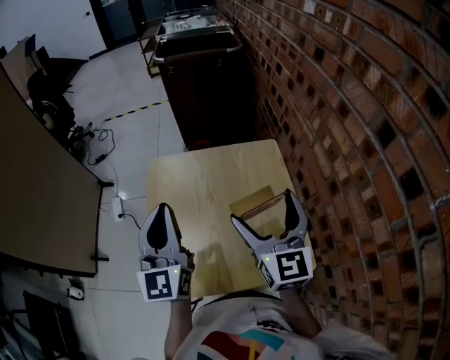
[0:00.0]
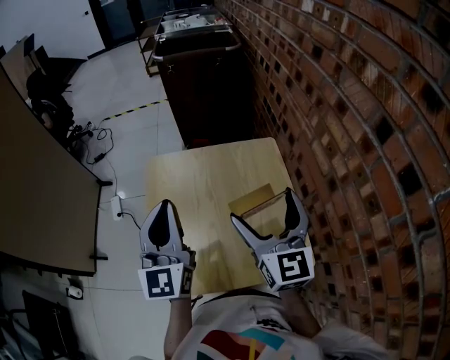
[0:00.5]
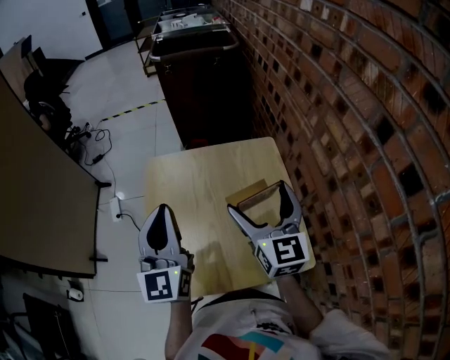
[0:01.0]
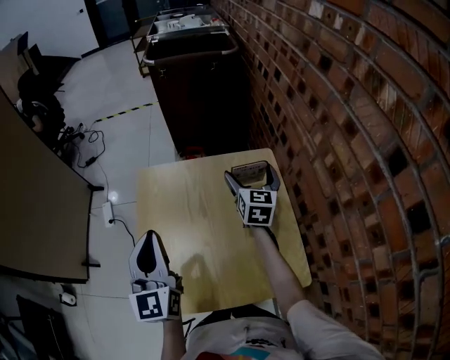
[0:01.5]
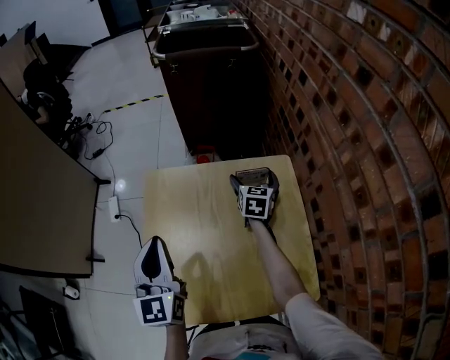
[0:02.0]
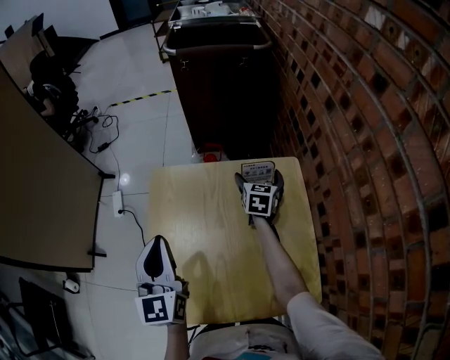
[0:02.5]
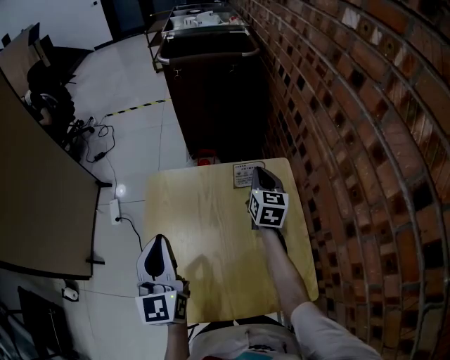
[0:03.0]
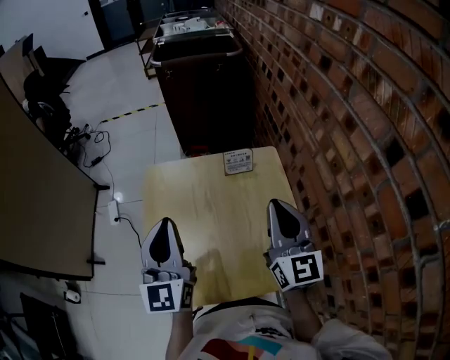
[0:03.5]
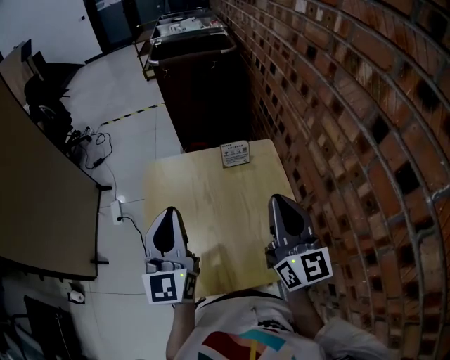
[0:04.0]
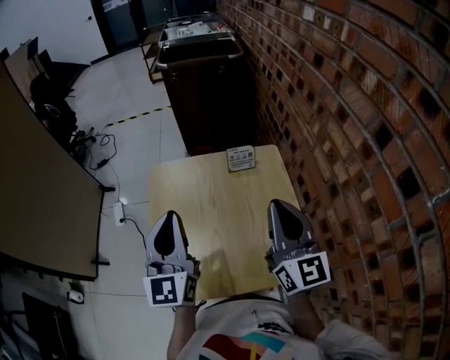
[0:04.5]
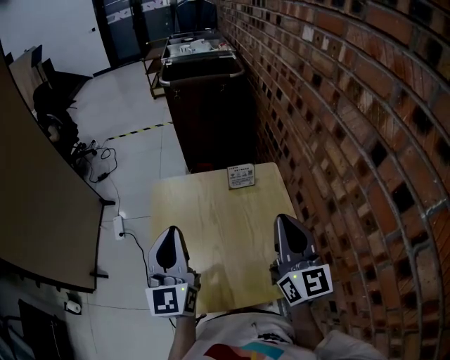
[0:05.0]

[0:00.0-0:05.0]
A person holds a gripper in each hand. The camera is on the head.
0.0 to 2.5 s: The left gripper shifts approximately 10 cm downward, forward and to the left; the right gripper heads forward and downward, covering some 40 cm, and rotates roughly 30 degrees.
2.5 to 5.0 s: The right gripper is displaced backward and upward by approximately 40 cm, tips its fingers upward by approximately 40 degrees, and closes up. The left gripper is displaced upward and backward by about 10 cm.

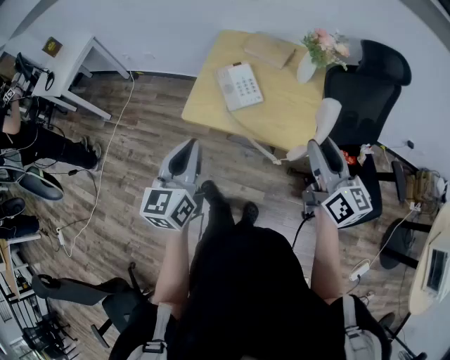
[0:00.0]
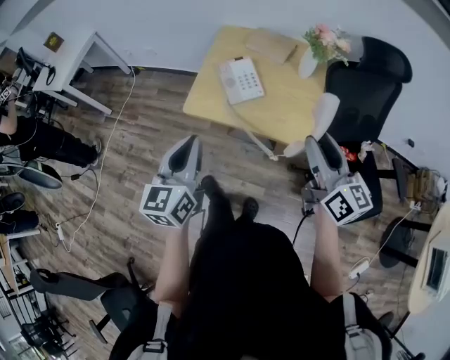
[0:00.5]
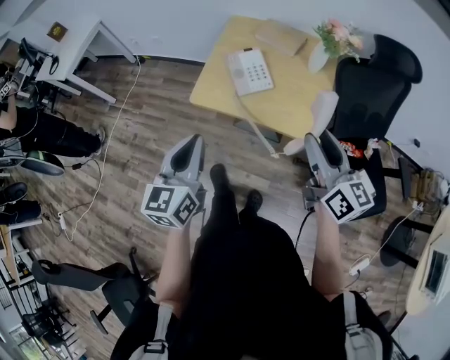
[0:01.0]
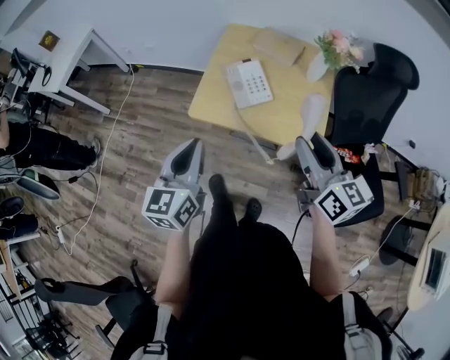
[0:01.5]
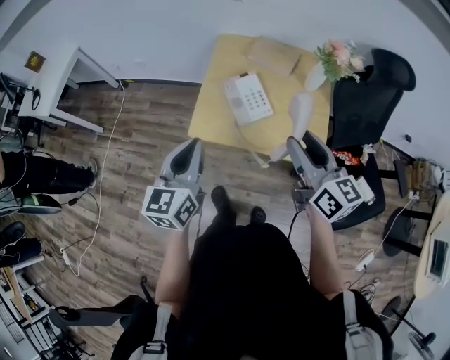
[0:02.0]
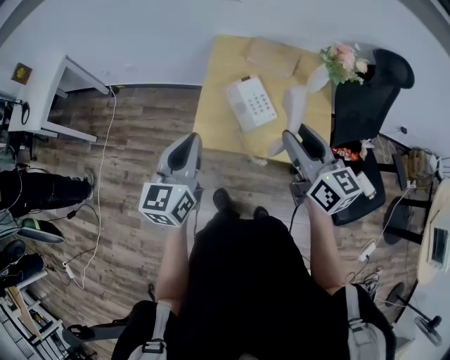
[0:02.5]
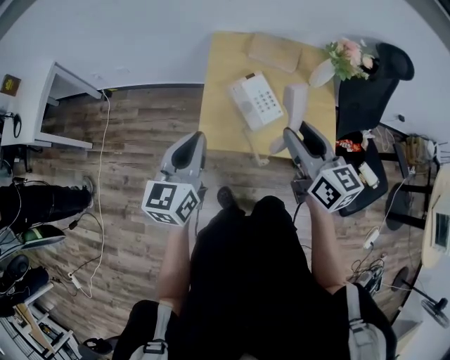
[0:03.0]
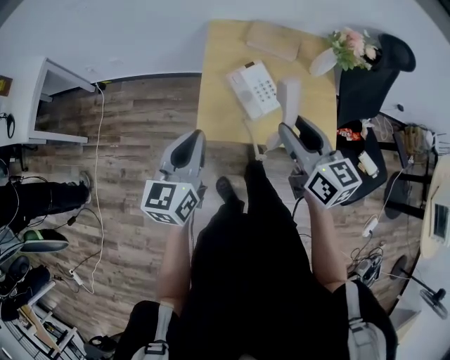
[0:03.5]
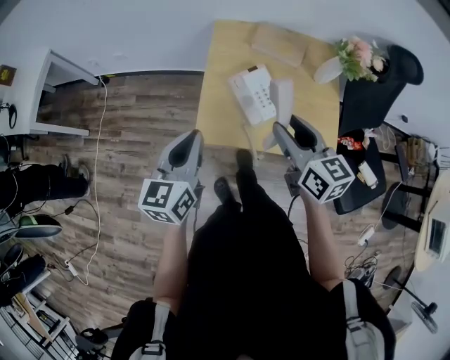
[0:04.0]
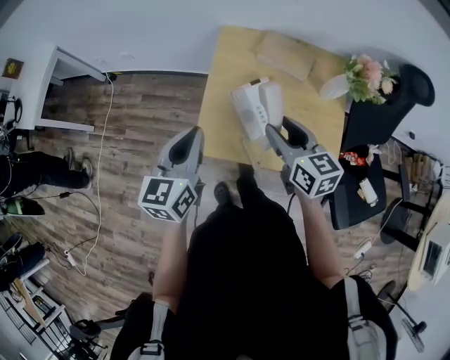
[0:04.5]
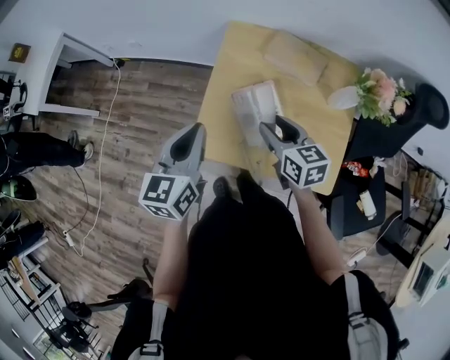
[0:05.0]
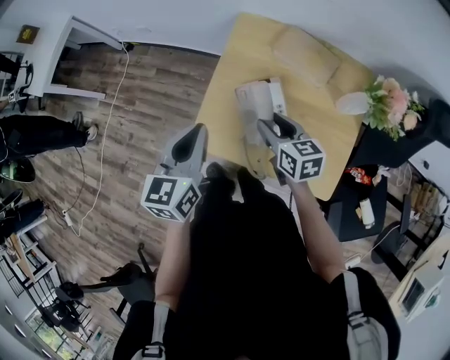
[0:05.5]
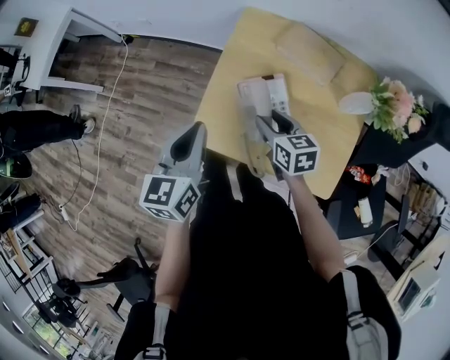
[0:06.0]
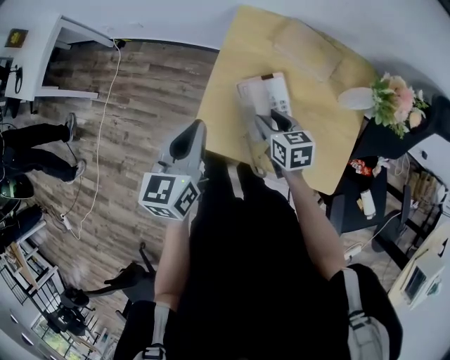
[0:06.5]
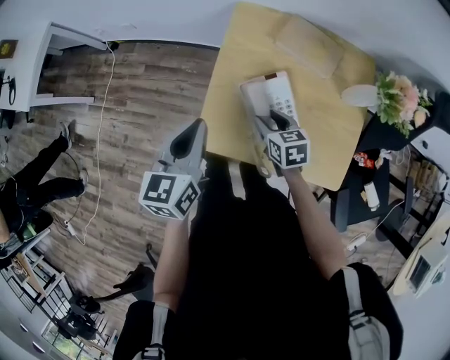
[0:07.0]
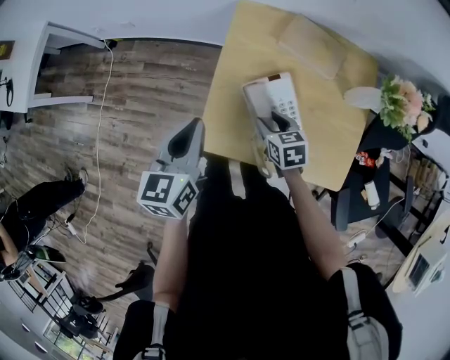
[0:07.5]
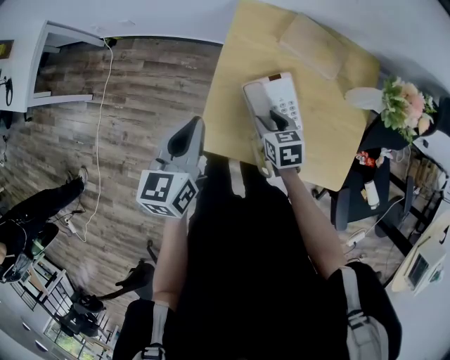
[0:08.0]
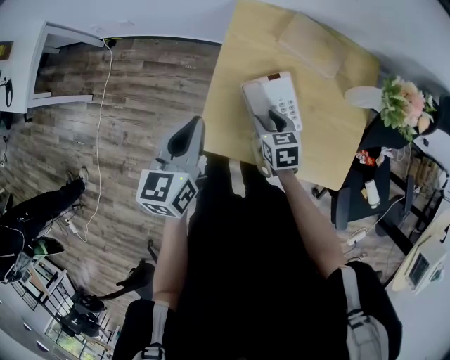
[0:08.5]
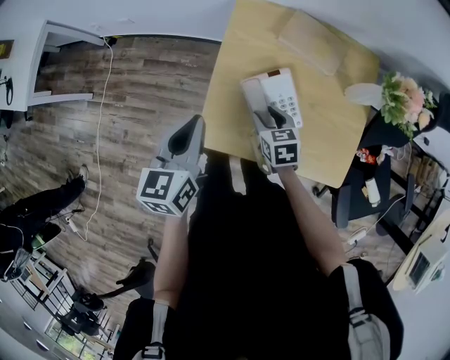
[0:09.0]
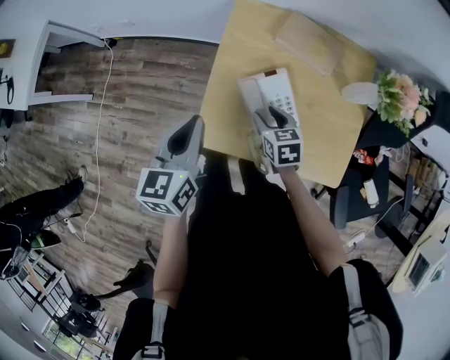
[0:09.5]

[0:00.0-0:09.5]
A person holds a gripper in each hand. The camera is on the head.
0.0 to 2.0 s: The right gripper travels to the left and forward by some 15 cm. The left gripper moves forward and to the left, approximately 15 cm.
2.0 to 4.0 s: Both grippers move forward, to the left and downward, about 15 cm.
4.0 to 5.5 s: The left gripper moves forward and to the right, some 10 cm; the right gripper goes about 20 cm downward and forward, and swivels some 20 degrees.
5.5 to 7.5 s: The right gripper is displaced downward by approximately 10 cm. Meanwhile the left gripper heads forward, covering roughly 5 cm.
7.5 to 9.5 s: The grippers move only a little.

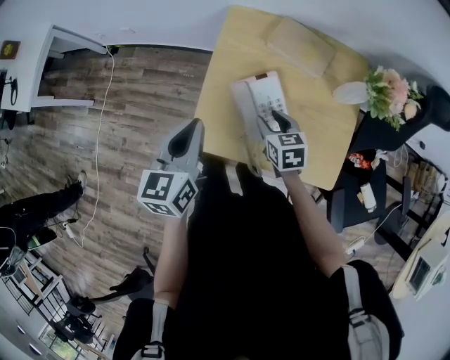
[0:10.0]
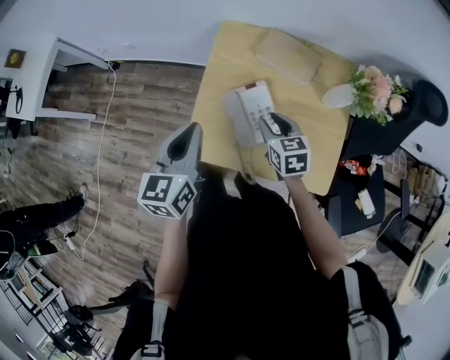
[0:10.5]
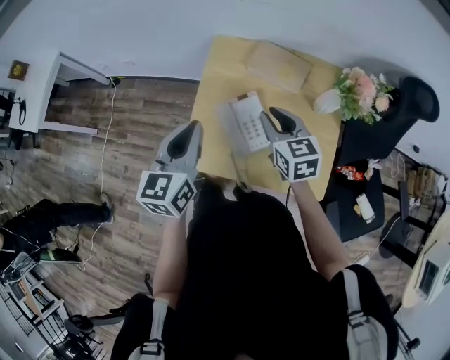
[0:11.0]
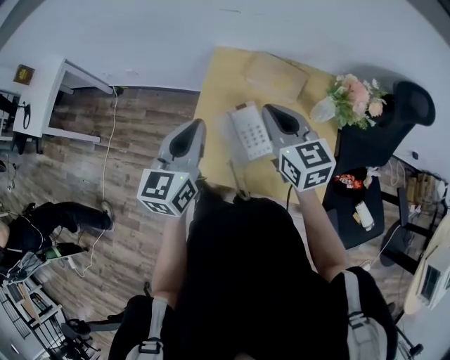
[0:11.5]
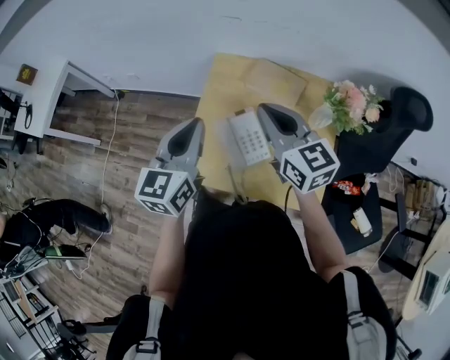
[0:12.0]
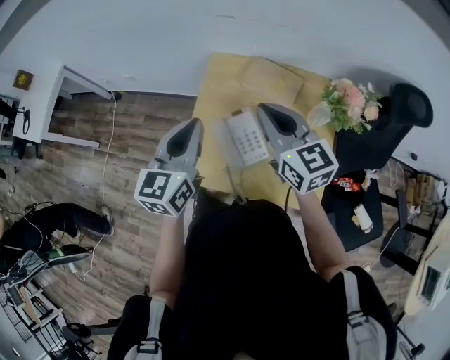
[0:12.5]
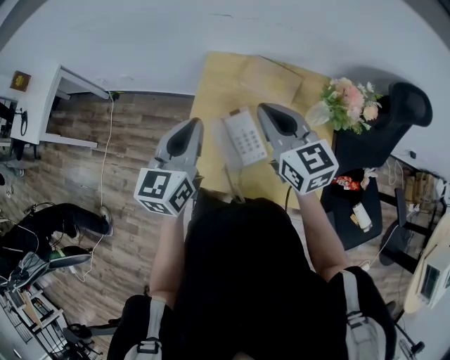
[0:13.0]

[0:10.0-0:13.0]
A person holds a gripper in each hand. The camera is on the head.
10.0 to 11.5 s: The left gripper heads upward and to the right, covering some 10 cm. The right gripper is displaced upward by about 25 cm, changes its angle by approximately 30 degrees, and closes its fingers.
11.5 to 13.0 s: The grippers make only small movements.

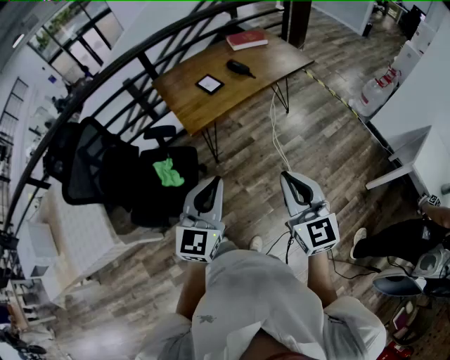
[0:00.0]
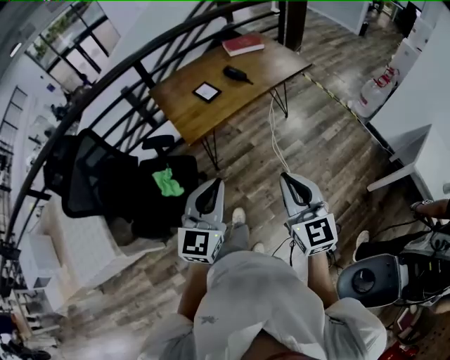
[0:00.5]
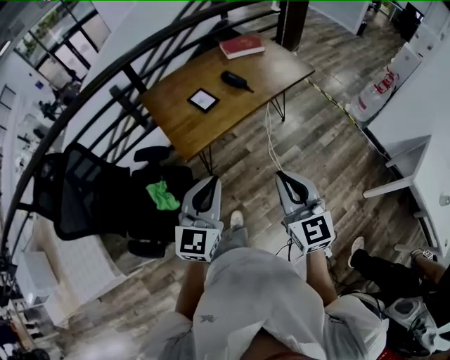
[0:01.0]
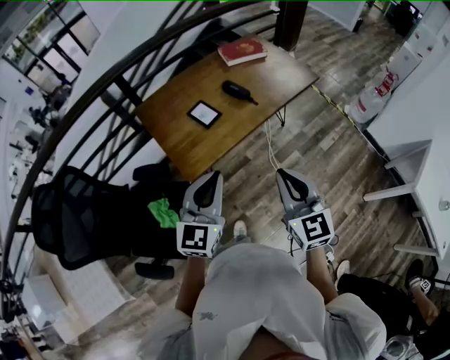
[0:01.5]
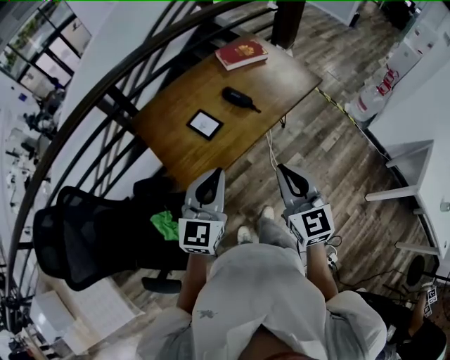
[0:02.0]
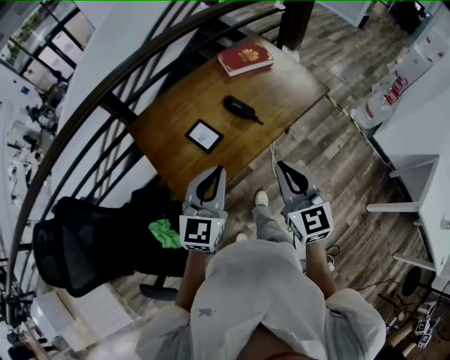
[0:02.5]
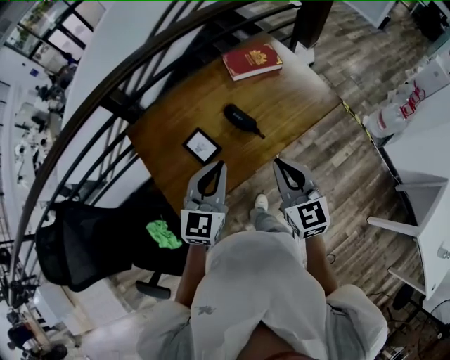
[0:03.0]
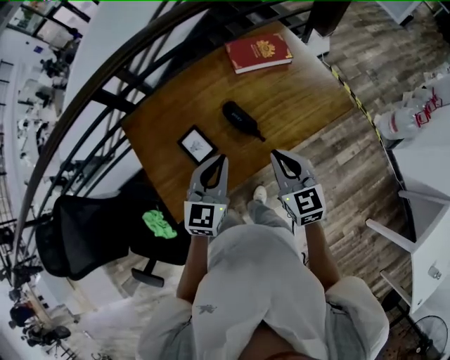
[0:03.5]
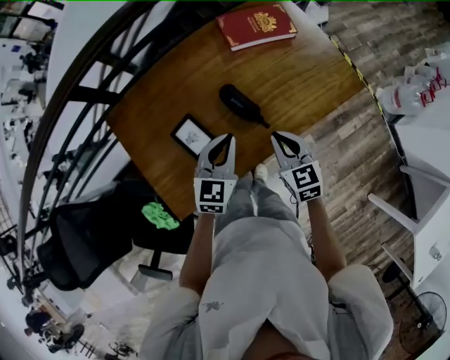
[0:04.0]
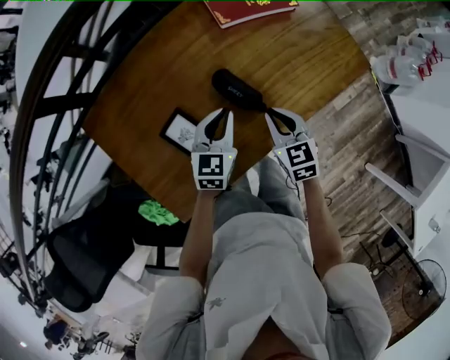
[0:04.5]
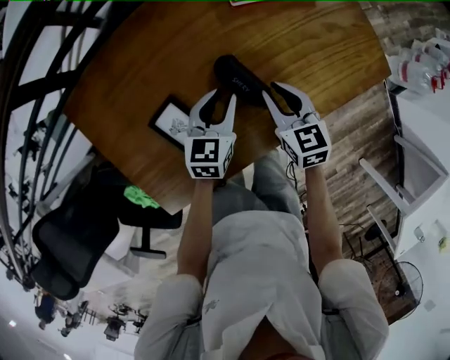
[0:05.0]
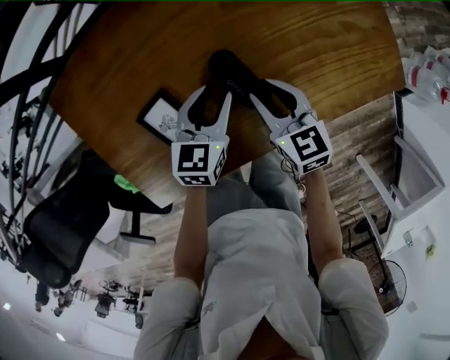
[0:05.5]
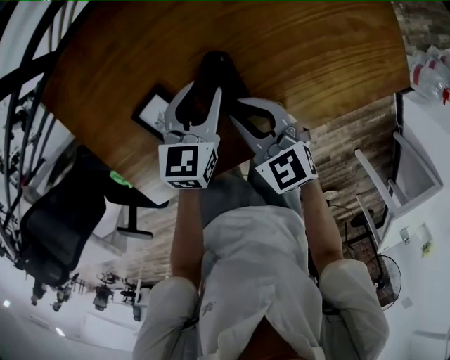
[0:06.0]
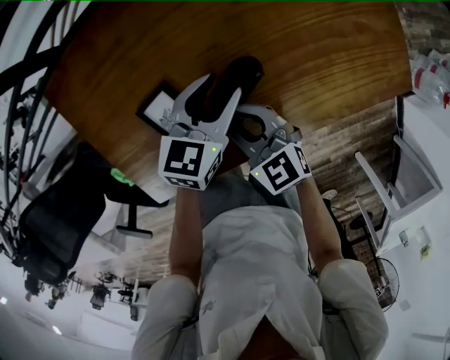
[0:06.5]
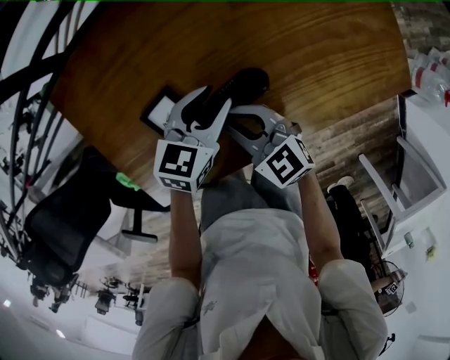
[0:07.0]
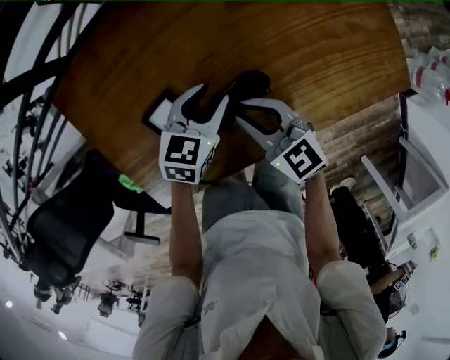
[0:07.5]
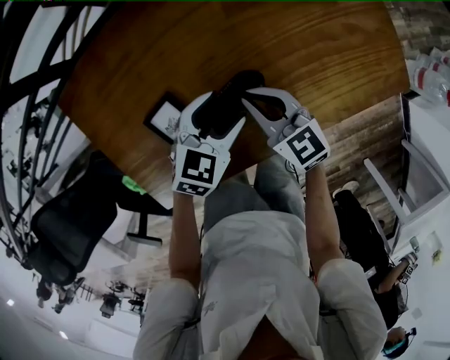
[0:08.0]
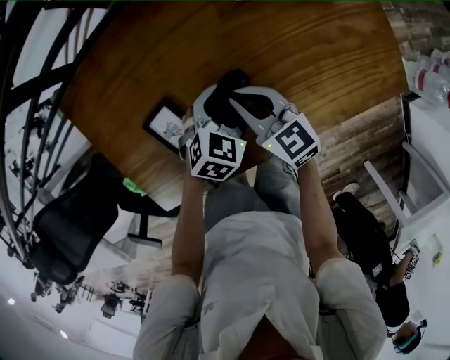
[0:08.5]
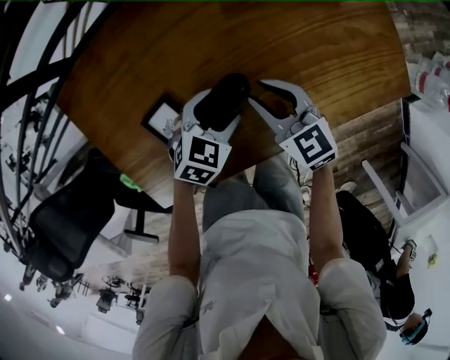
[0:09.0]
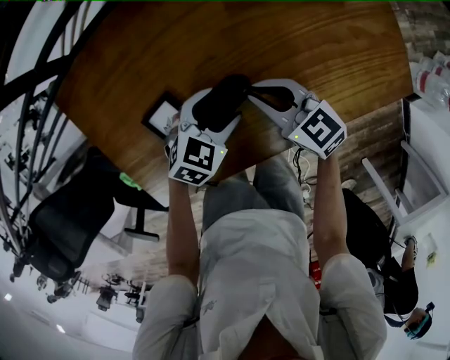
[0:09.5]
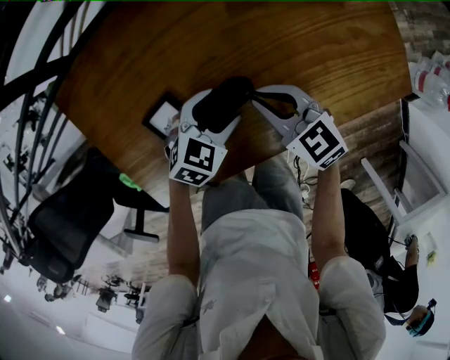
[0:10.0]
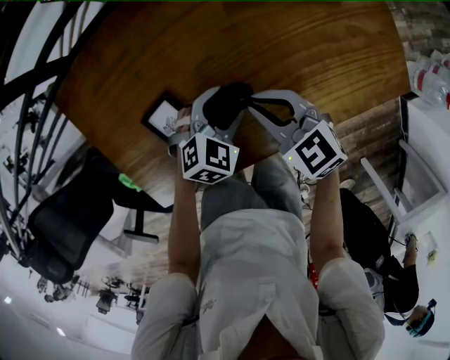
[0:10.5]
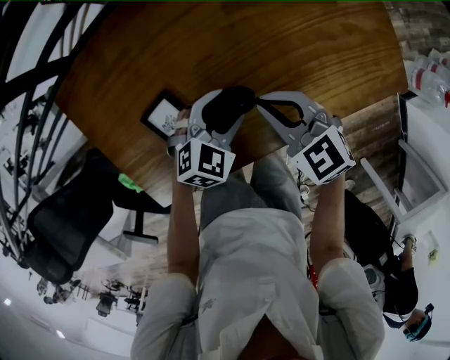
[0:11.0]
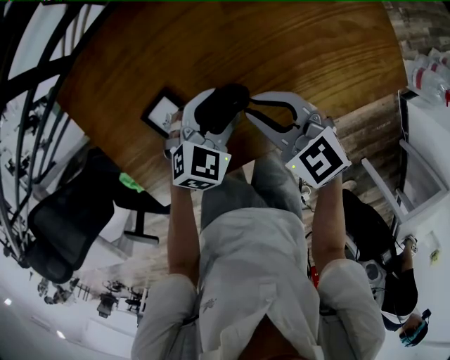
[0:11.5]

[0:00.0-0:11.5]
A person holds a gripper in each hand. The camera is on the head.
0.0 to 2.0 s: Both grippers travel together forward, some 35 cm.
2.0 to 4.0 s: The two grippers go some 35 cm forward and downward. The right gripper rotates roughly 30 degrees; the left gripper swivels roughly 20 degrees.
4.0 to 6.0 s: The left gripper heads downward and forward, covering about 15 cm, swivels approximately 20 degrees, and opens its fingers. Meanwhile the right gripper heads to the left, downward and forward, covering approximately 15 cm, and turns by roughly 30 degrees.
6.0 to 7.5 s: The grippers stay close to where they were, moving slightly.
7.5 to 9.5 s: The right gripper changes place by some 5 cm. Meanwhile the left gripper rotates approximately 20 degrees, and opens.
9.5 to 11.5 s: The right gripper shifts about 5 cm upward.
